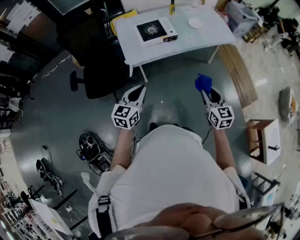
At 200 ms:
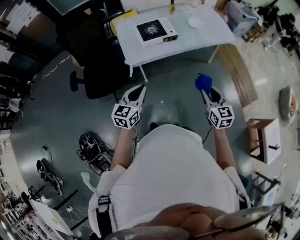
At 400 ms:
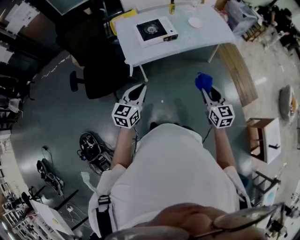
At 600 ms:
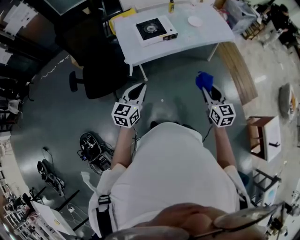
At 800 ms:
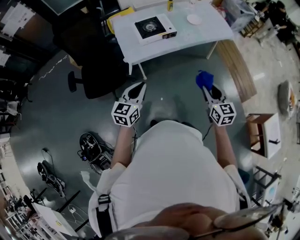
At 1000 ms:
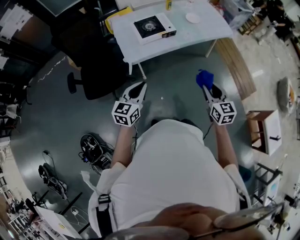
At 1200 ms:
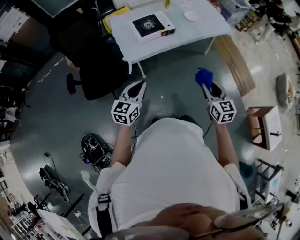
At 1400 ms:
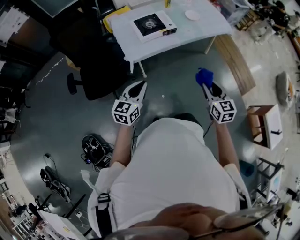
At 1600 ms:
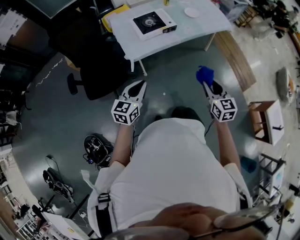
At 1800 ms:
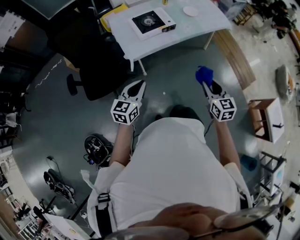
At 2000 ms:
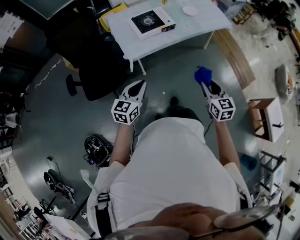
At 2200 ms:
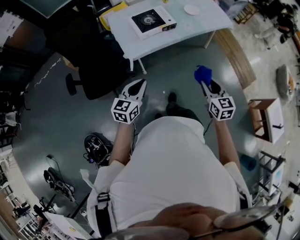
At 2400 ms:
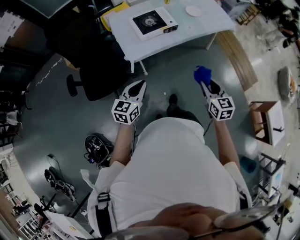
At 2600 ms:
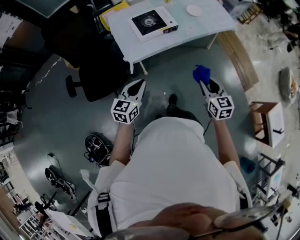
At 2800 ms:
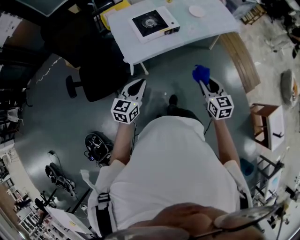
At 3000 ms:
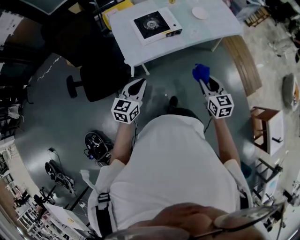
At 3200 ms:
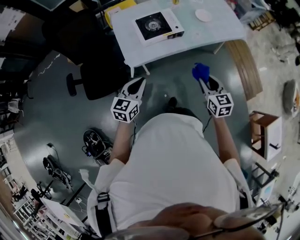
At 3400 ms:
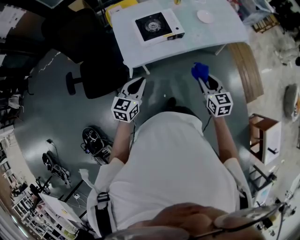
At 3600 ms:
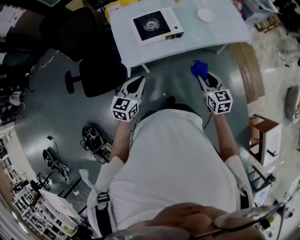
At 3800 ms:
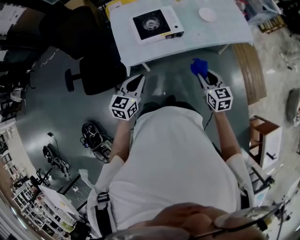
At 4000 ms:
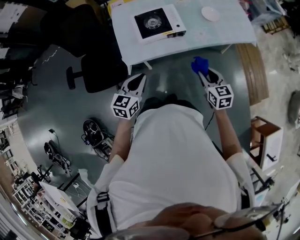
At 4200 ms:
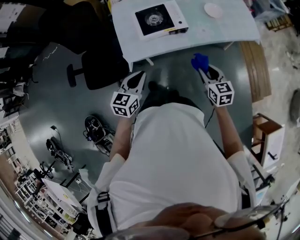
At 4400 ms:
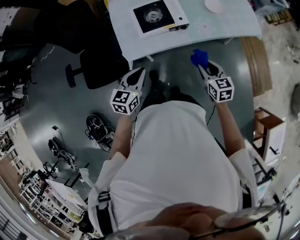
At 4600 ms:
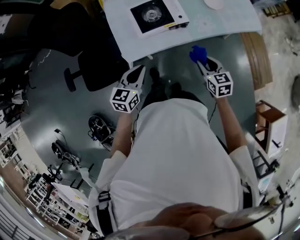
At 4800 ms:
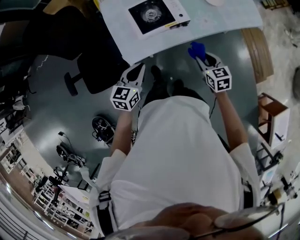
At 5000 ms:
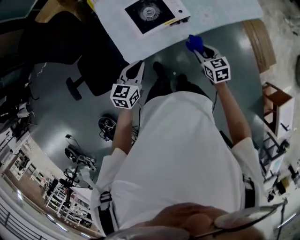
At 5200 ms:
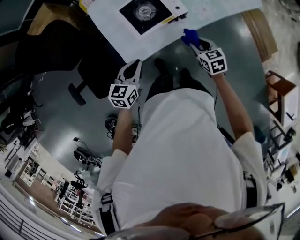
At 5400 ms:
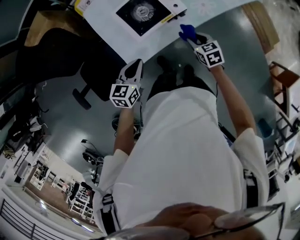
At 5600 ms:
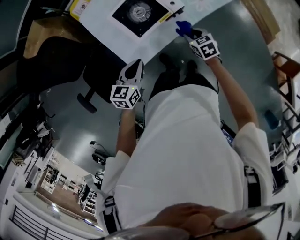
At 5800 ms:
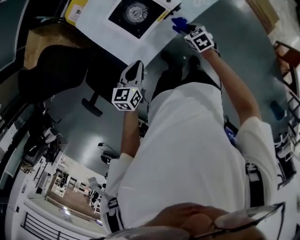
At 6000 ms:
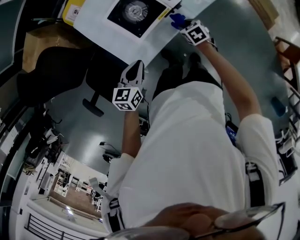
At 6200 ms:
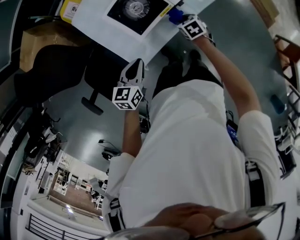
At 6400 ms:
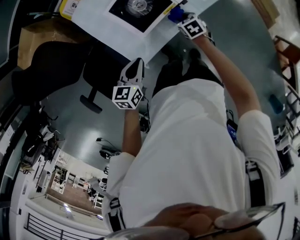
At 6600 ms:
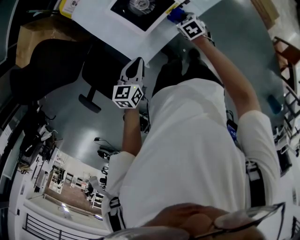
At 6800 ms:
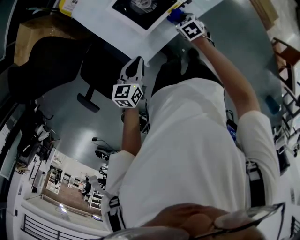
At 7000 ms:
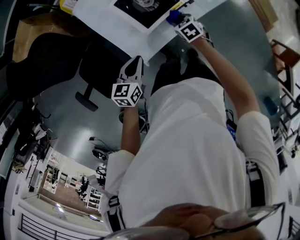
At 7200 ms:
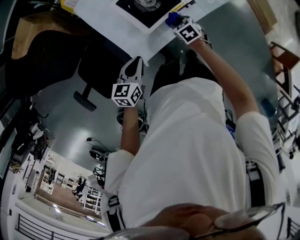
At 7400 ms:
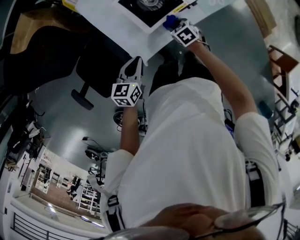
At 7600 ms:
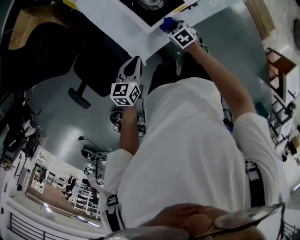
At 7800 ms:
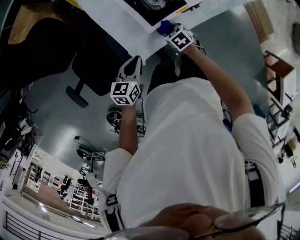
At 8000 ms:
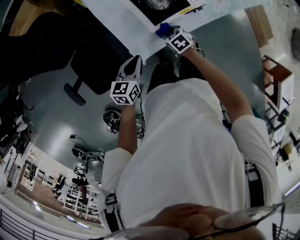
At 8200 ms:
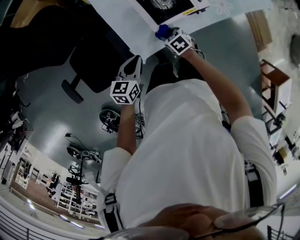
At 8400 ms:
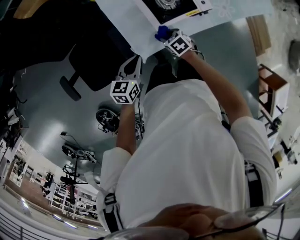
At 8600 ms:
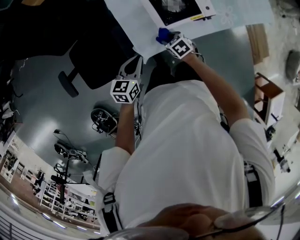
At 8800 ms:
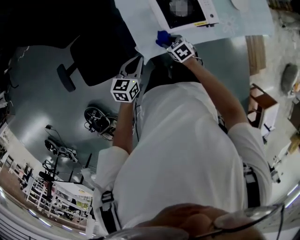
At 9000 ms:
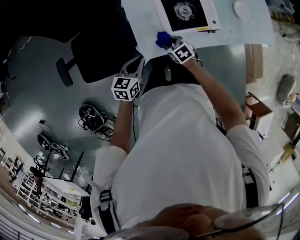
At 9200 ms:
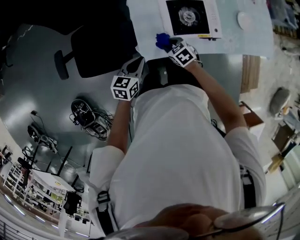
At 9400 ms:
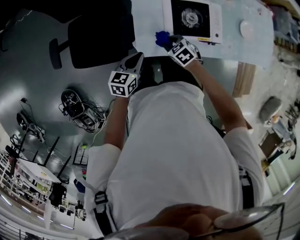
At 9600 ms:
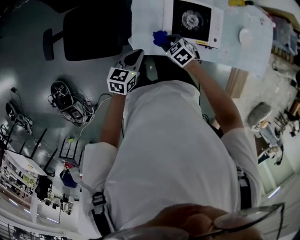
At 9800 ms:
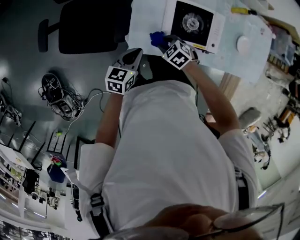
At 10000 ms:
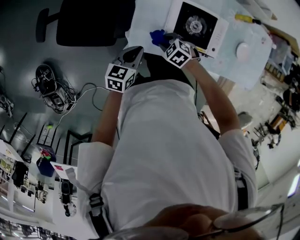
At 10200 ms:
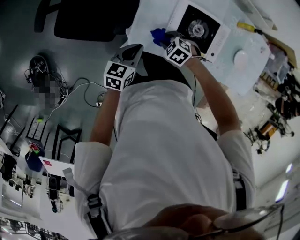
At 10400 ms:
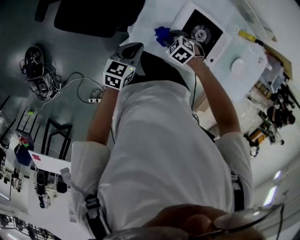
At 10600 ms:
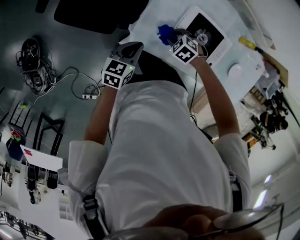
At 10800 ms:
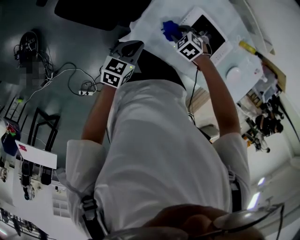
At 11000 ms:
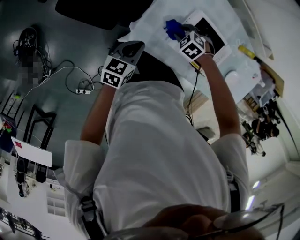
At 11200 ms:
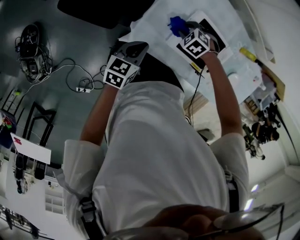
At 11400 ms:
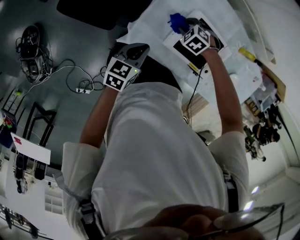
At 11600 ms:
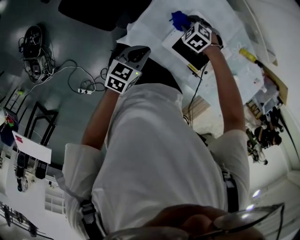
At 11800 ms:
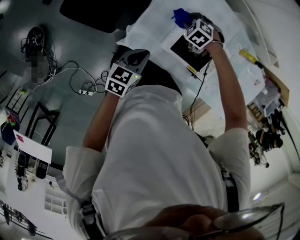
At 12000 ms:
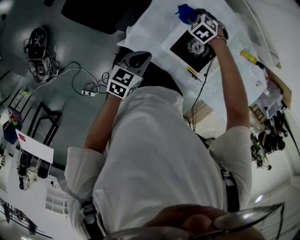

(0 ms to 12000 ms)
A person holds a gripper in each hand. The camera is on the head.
0 ms - 1600 ms: The two grippers go some 5 cm to the left.
1600 ms - 3000 ms: Both grippers travel together forward, roughly 15 cm.
3000 ms - 4400 ms: The two grippers go roughly 15 cm forward and downward.
4400 ms - 6000 ms: The right gripper goes some 30 cm downward, forward and to the left, and turns by about 30 degrees. Meanwhile the left gripper shifts some 20 cm forward, downward and to the left, and swivels some 20 degrees.
6000 ms - 7600 ms: The right gripper travels to the left by roughly 15 cm. The left gripper is displaced to the left by approximately 10 cm.
7600 ms - 9000 ms: The right gripper moves to the left and upward, some 15 cm, and changes its angle by roughly 20 degrees. Meanwhile the left gripper is displaced to the left by about 5 cm.
9000 ms - 10400 ms: The left gripper turns by approximately 20 degrees. The right gripper rotates around the line of its fingers by about 50 degrees, counterclockwise from behind.
10400 ms - 12000 ms: The right gripper changes place by about 20 cm. Meanwhile the left gripper changes place by roughly 5 cm.

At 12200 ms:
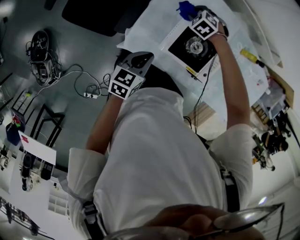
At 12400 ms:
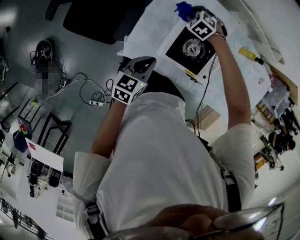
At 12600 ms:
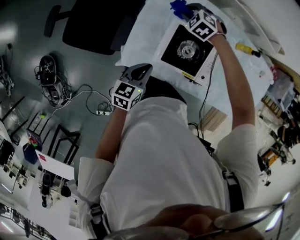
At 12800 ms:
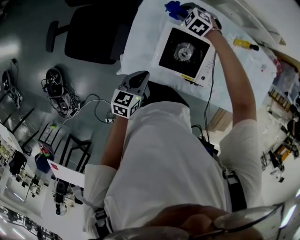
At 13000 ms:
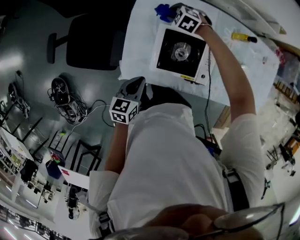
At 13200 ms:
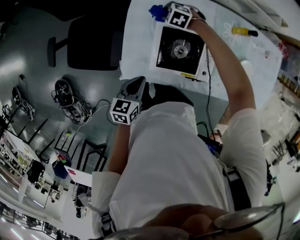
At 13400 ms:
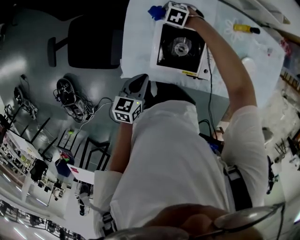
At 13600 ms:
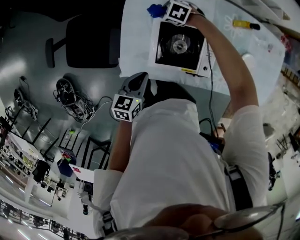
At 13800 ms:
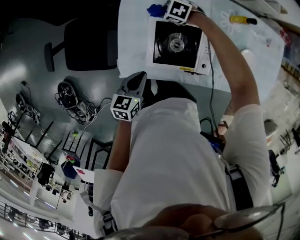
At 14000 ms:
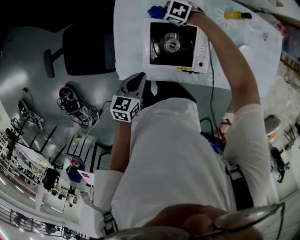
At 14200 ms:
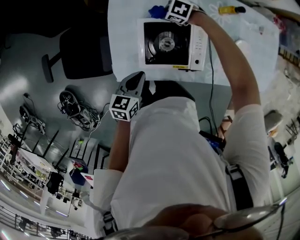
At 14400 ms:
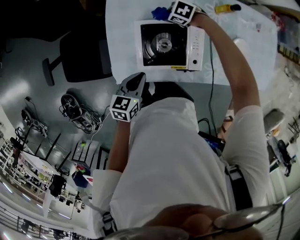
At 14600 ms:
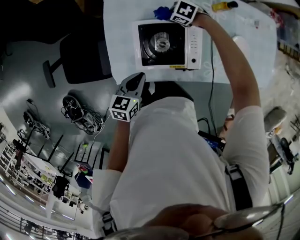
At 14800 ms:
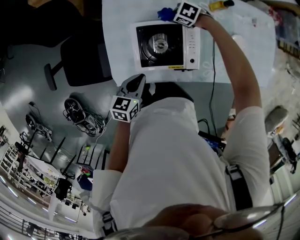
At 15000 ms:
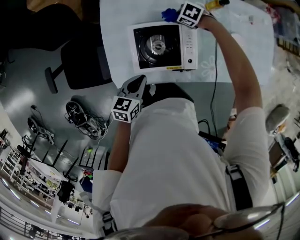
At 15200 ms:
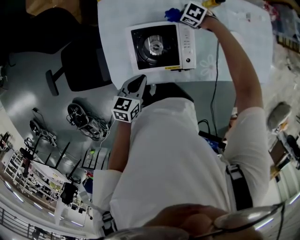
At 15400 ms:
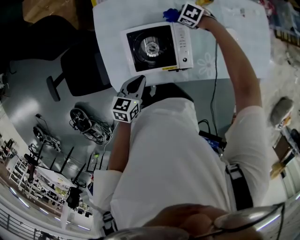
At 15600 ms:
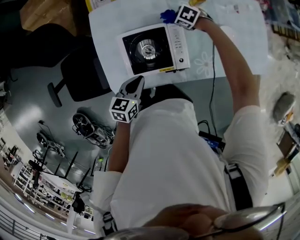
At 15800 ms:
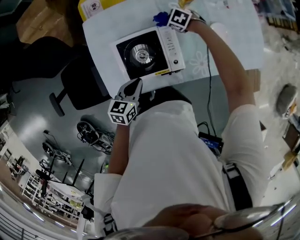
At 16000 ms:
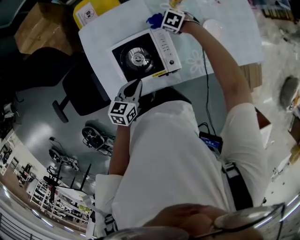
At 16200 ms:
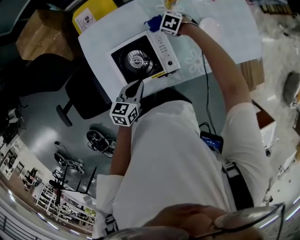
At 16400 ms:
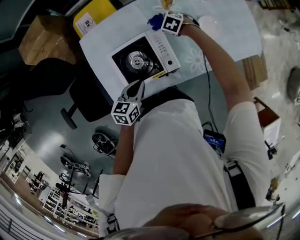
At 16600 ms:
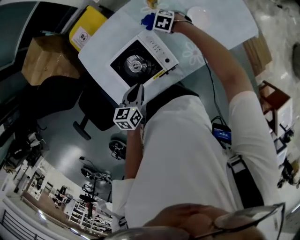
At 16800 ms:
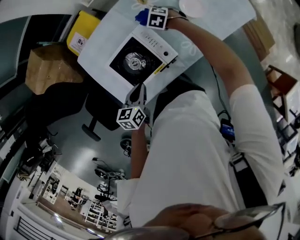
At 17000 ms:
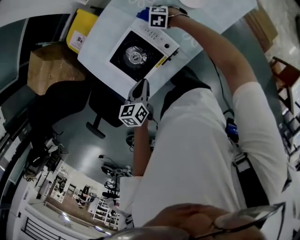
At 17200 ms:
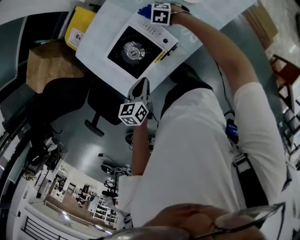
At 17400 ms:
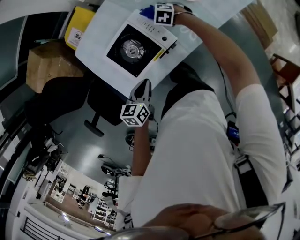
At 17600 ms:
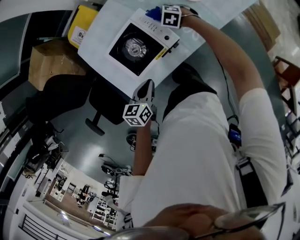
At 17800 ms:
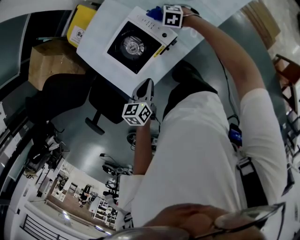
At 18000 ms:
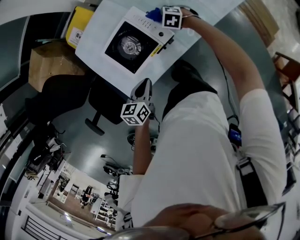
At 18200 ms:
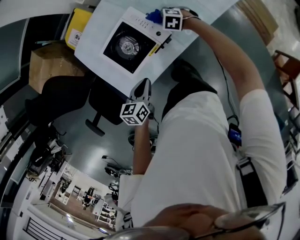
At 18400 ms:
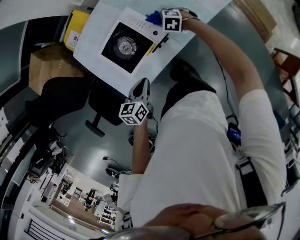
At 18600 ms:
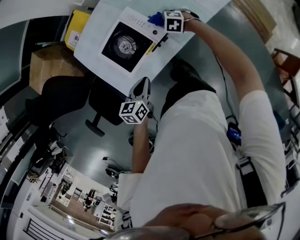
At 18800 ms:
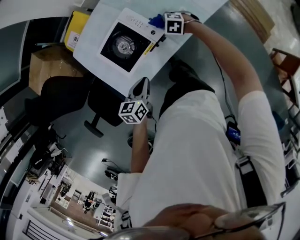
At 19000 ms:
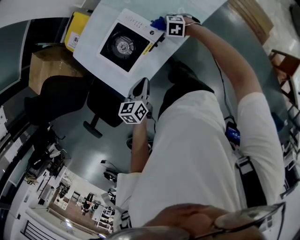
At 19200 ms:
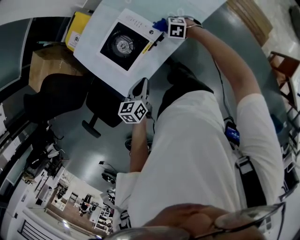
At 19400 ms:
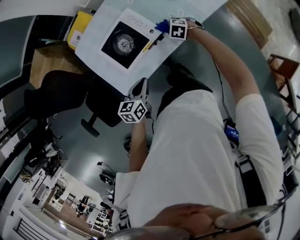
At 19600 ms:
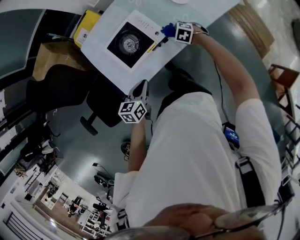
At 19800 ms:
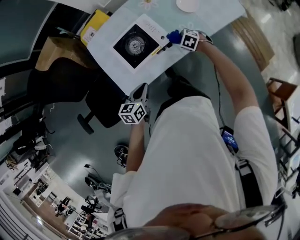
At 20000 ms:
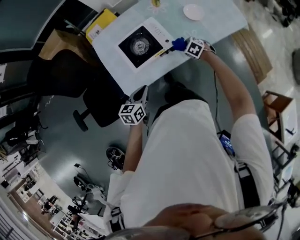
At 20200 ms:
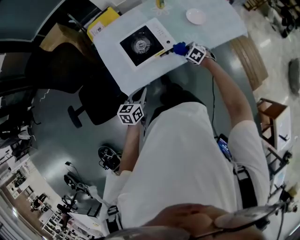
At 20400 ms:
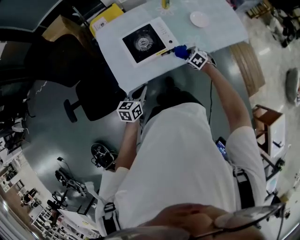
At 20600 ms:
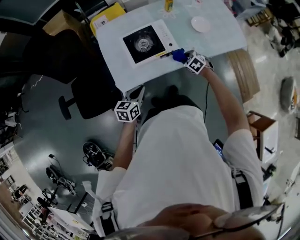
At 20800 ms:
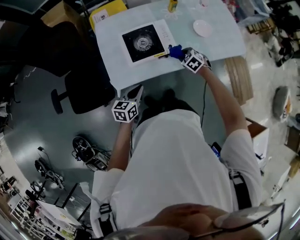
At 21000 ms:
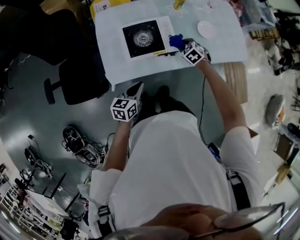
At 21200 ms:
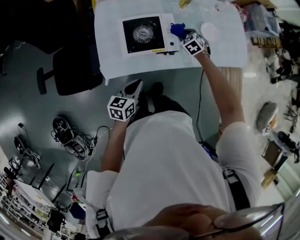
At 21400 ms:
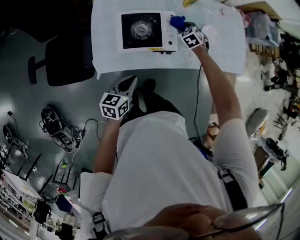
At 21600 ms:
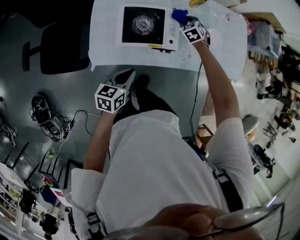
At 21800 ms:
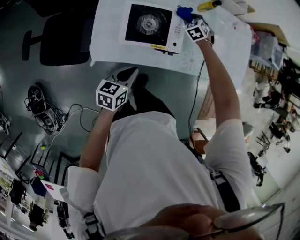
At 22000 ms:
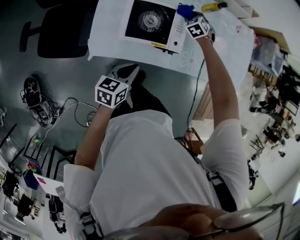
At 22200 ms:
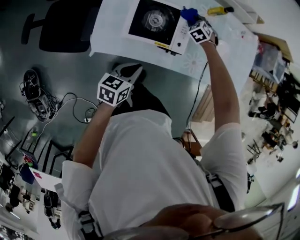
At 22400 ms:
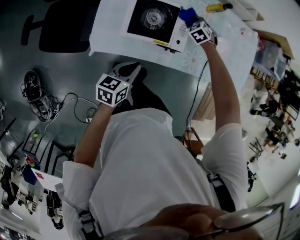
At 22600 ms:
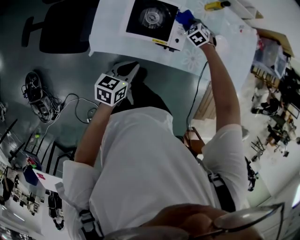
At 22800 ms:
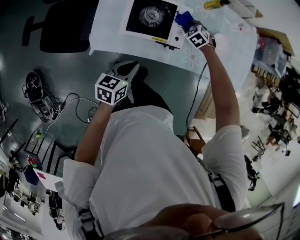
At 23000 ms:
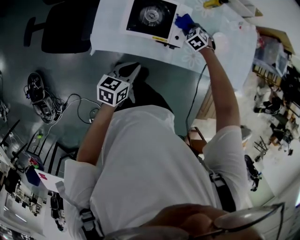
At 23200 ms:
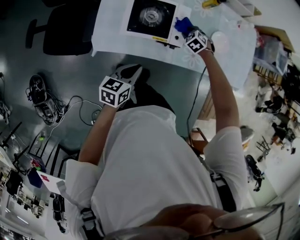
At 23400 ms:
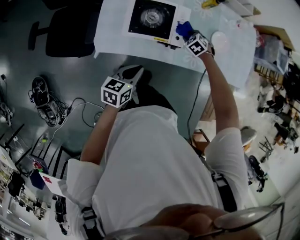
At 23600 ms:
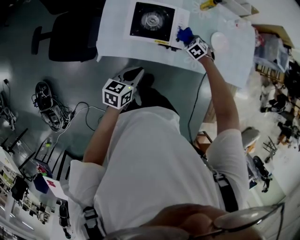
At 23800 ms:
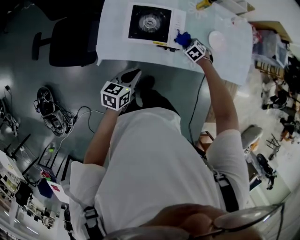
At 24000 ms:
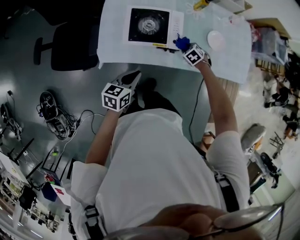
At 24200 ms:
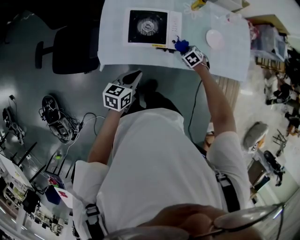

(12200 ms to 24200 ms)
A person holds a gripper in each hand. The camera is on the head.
12200 ms - 13800 ms: The left gripper shifts by some 5 cm; the right gripper reaches roughly 5 cm upward, then returns, and turns by approximately 30 degrees.
13800 ms - 15200 ms: The left gripper changes place by approximately 10 cm. Meanwhile the right gripper changes place by some 20 cm.
15200 ms - 16600 ms: The left gripper shifts by some 10 cm, while the right gripper moves roughly 10 cm, and changes its angle by roughly 30 degrees.
16600 ms - 18200 ms: The right gripper shifts approximately 15 cm backward; the left gripper is displaced backward by approximately 10 cm.
18200 ms - 19800 ms: The left gripper is displaced backward by some 10 cm; the right gripper travels backward by about 10 cm.
19800 ms - 21200 ms: The right gripper heads forward, upward and to the left, covering about 15 cm.
21200 ms - 22600 ms: The right gripper goes some 10 cm downward and forward, and swivels some 30 degrees.
22600 ms - 24200 ms: The right gripper shifts by roughly 15 cm, and swivels some 20 degrees.
